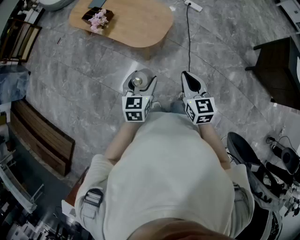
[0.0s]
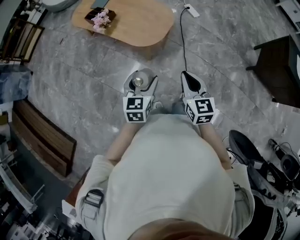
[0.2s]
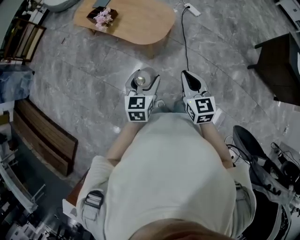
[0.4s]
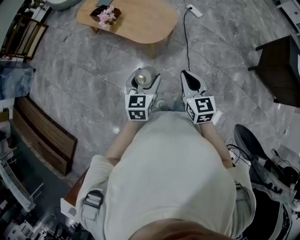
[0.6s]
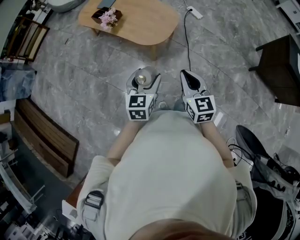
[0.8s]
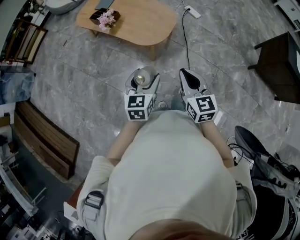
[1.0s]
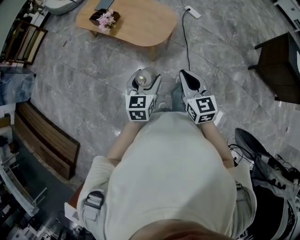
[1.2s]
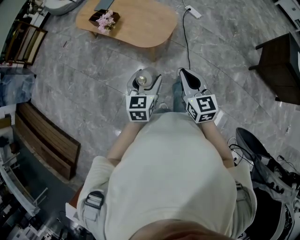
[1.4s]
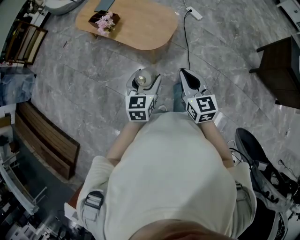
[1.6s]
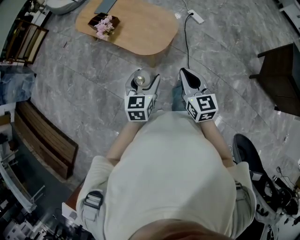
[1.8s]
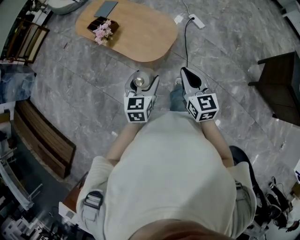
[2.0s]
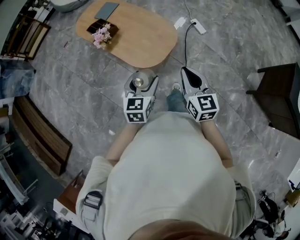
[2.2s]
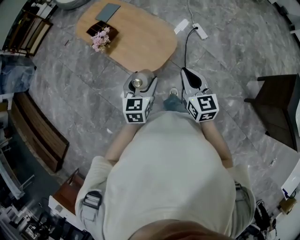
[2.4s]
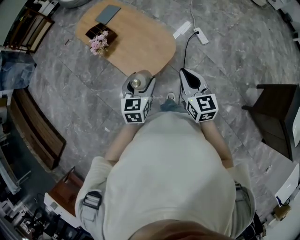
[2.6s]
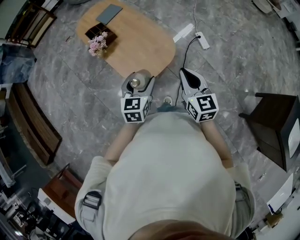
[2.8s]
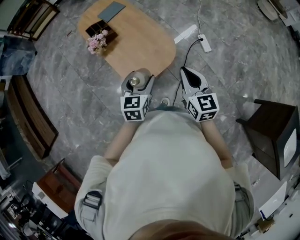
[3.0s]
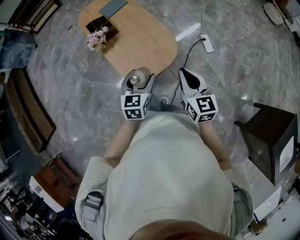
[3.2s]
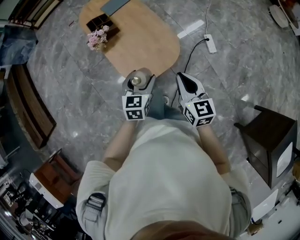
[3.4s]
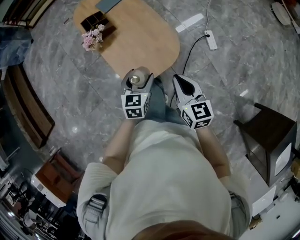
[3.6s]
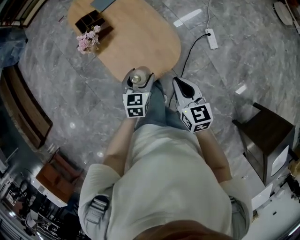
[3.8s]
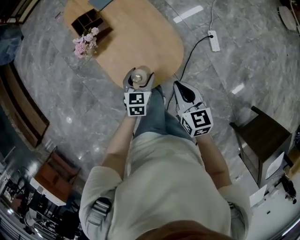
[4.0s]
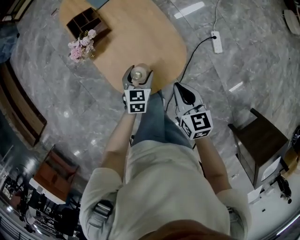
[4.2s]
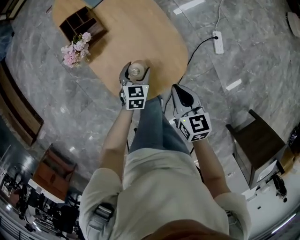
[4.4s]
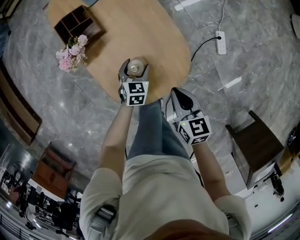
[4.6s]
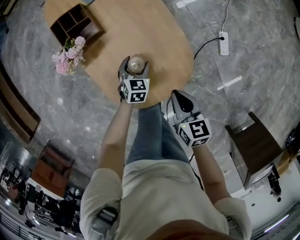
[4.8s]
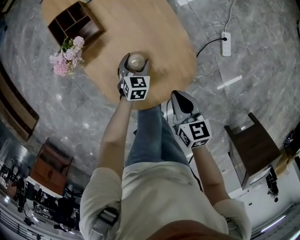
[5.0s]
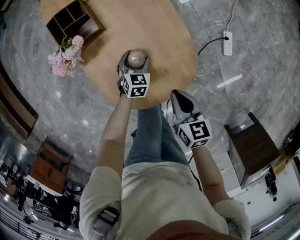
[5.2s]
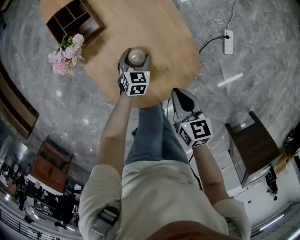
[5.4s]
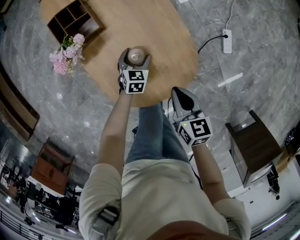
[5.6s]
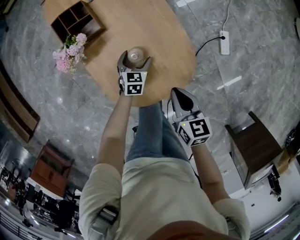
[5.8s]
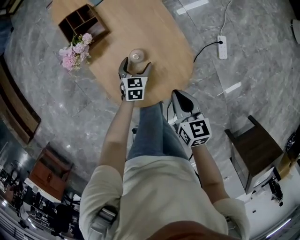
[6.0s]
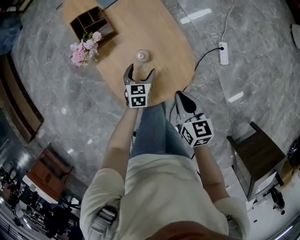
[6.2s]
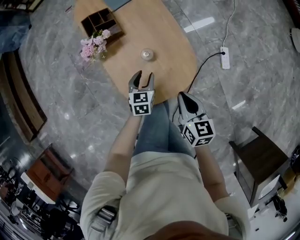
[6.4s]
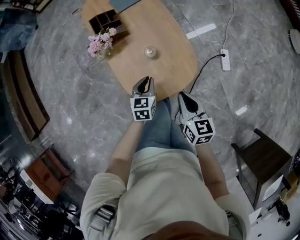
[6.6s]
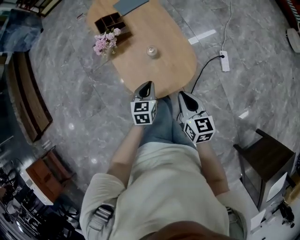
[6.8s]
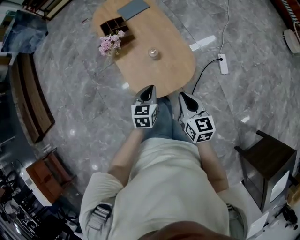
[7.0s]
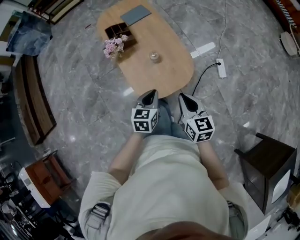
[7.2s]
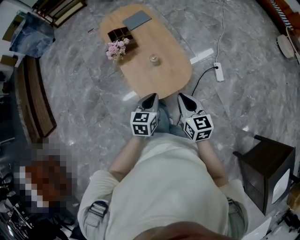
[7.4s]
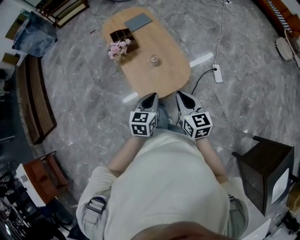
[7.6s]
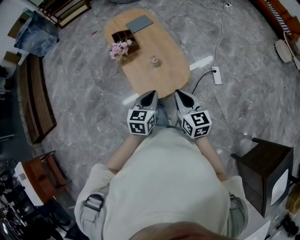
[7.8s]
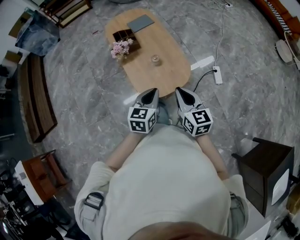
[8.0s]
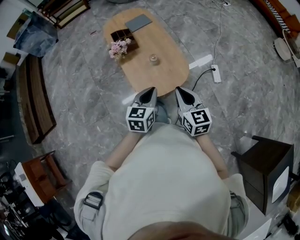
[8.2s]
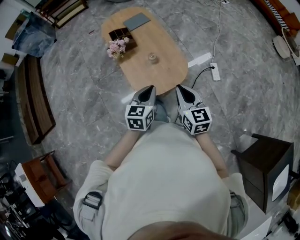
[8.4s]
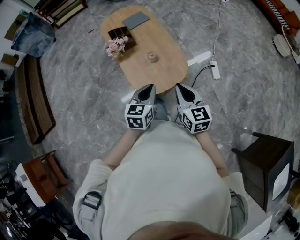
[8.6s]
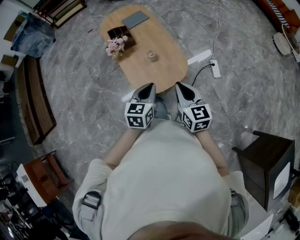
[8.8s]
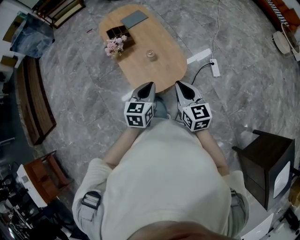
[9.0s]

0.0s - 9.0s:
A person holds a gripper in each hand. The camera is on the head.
1.6s - 3.0s: The grippers both shift forward and to the right by about 30 cm. The left gripper turns by some 20 degrees.
3.0s - 4.4s: The two grippers go about 30 cm downward and forward. The right gripper rotates approximately 20 degrees.
4.4s - 6.0s: The left gripper heads downward, covering about 5 cm.
6.0s - 7.6s: The right gripper moves upward and backward, roughly 25 cm, and turns by approximately 20 degrees. The left gripper moves upward and backward, some 40 cm, and closes.
7.6s - 9.0s: The grippers move only a little.

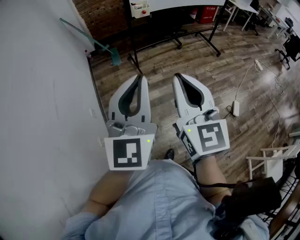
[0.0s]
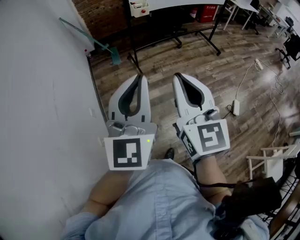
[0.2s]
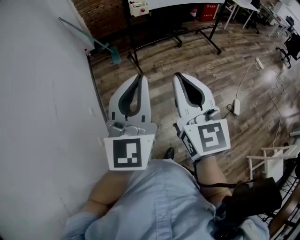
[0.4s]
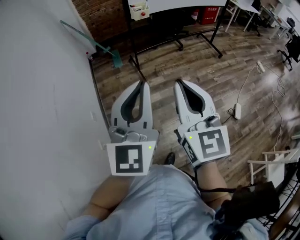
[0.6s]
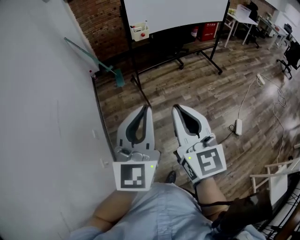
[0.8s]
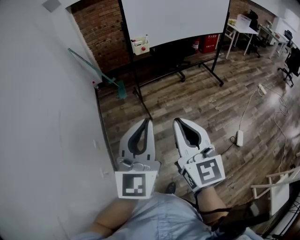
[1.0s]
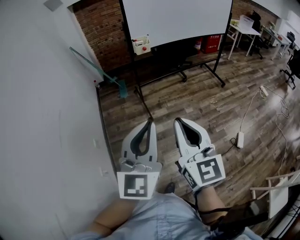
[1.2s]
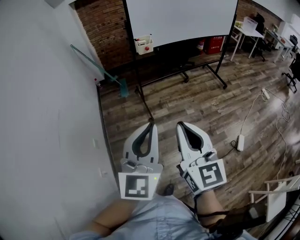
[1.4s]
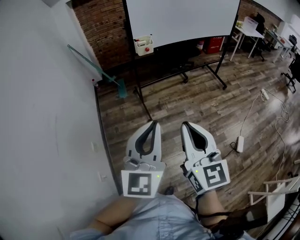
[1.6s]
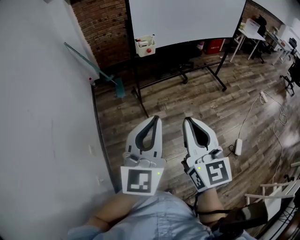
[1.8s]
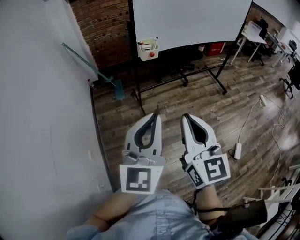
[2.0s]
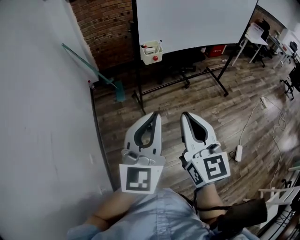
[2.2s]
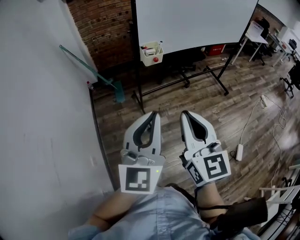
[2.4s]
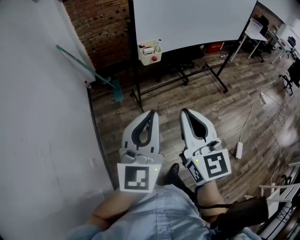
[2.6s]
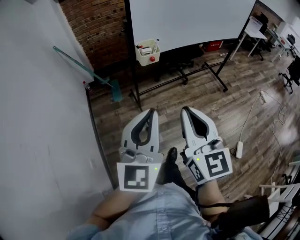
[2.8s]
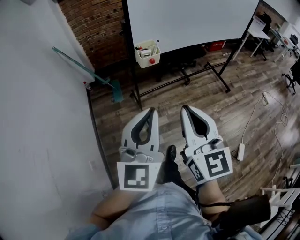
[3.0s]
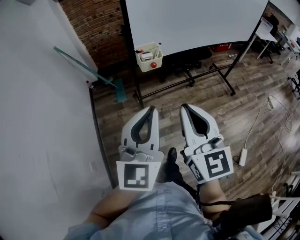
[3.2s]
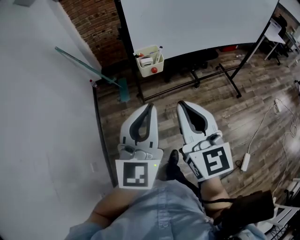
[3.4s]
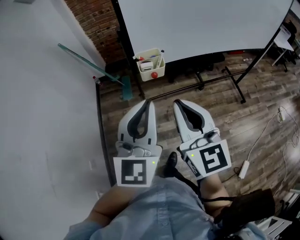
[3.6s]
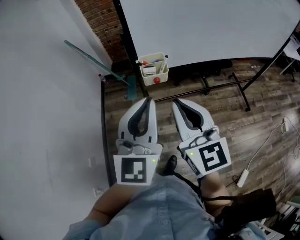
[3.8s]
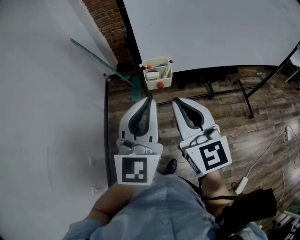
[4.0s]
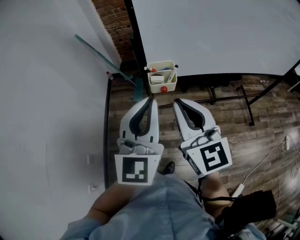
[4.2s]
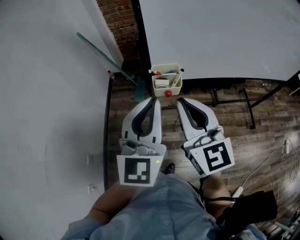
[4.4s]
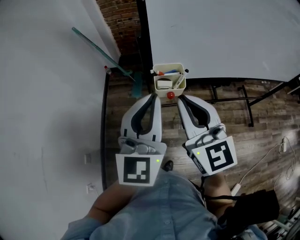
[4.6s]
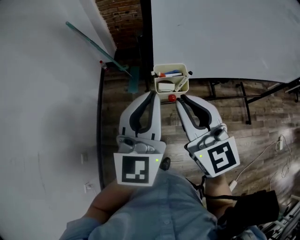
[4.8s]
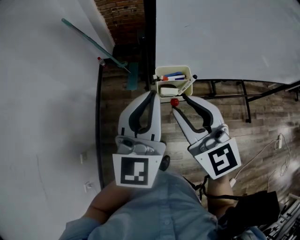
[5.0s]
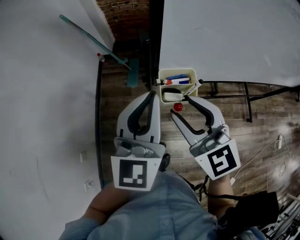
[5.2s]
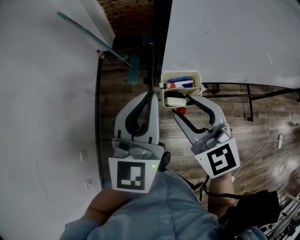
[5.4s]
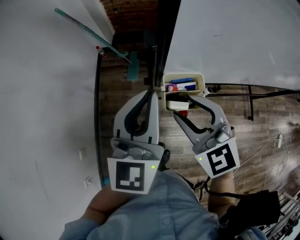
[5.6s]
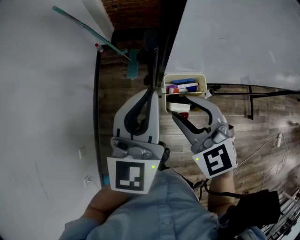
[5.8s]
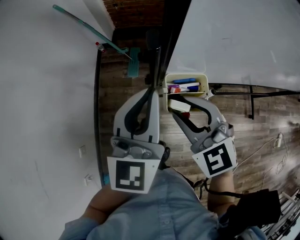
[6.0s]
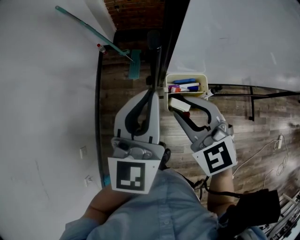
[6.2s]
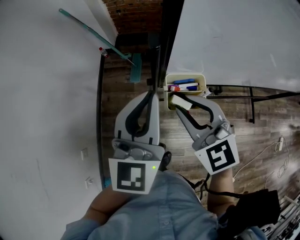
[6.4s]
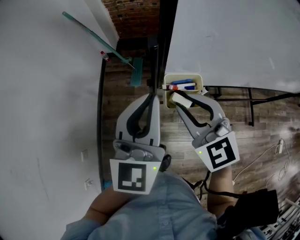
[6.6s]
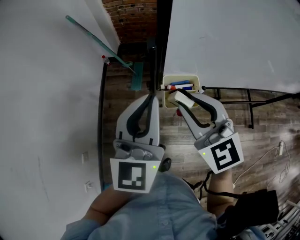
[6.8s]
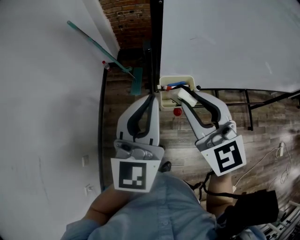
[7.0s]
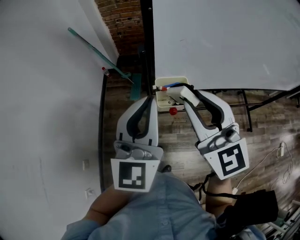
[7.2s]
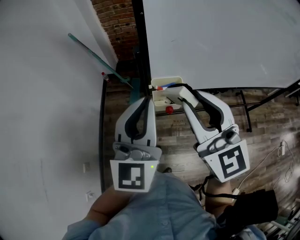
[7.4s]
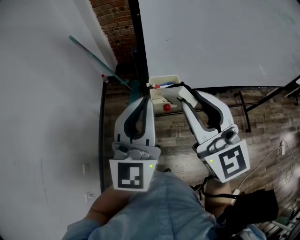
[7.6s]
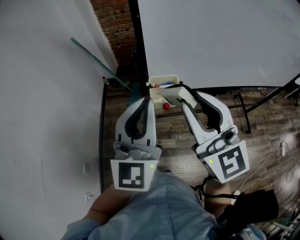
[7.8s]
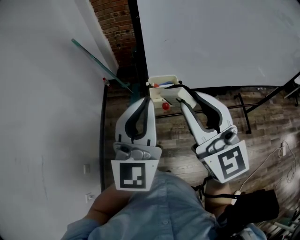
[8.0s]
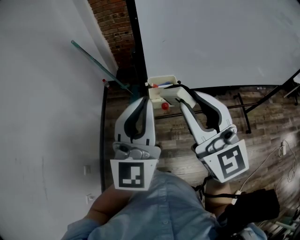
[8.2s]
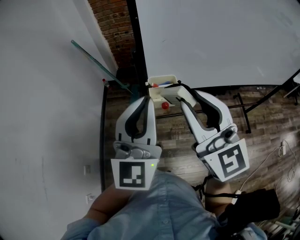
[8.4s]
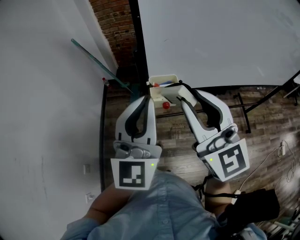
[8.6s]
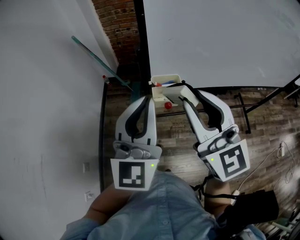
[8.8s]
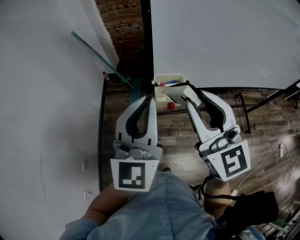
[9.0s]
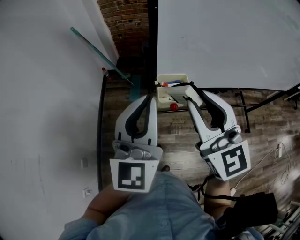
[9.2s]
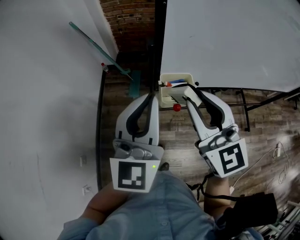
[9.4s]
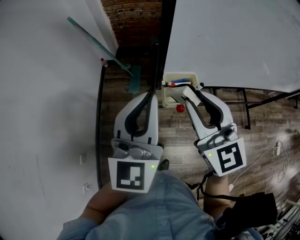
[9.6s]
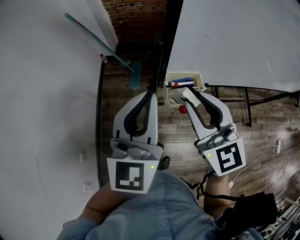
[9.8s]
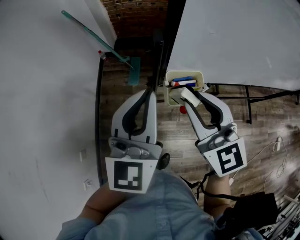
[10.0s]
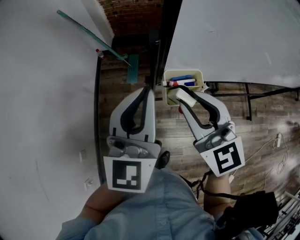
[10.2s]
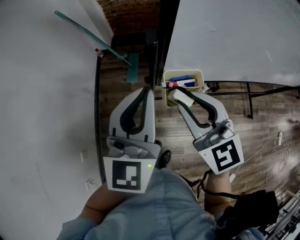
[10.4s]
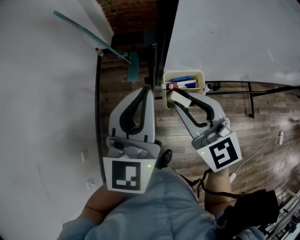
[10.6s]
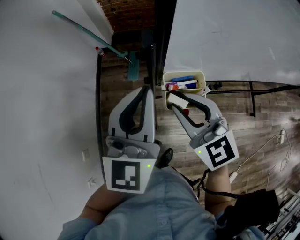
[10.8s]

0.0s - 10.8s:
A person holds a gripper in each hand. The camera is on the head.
0.0s - 1.6s: Both grippers move forward and to the right, about 10 cm.
1.6s - 3.0s: Both grippers travel together forward, about 25 cm.
3.0s - 4.6s: The grippers both shift forward by approximately 25 cm. The right gripper swivels about 30 degrees; the left gripper swivels some 20 degrees.
4.6s - 6.2s: The right gripper shifts about 15 cm downward and forward, swivels approximately 30 degrees, and opens up. The left gripper is displaced forward and downward by about 15 cm.
6.2s - 7.8s: The left gripper shifts roughly 15 cm backward and upward. Meanwhile the right gripper travels upward and backward by roughly 20 cm, and tips its fingers upward by approximately 30 degrees.
7.8s - 9.2s: The grippers stay close to where they were, moving slightly.
9.2s - 10.8s: The left gripper travels forward and downward by about 10 cm. Meanwhile the right gripper goes approximately 15 cm downward and forward, and turns by approximately 20 degrees.

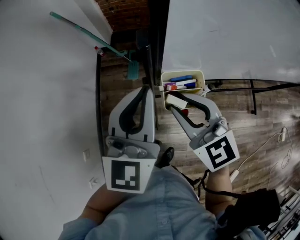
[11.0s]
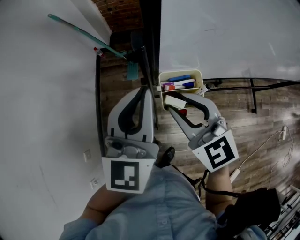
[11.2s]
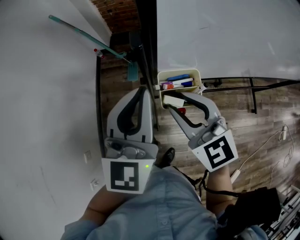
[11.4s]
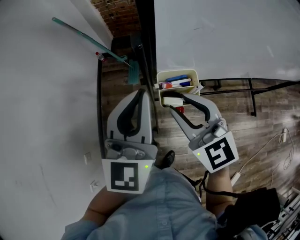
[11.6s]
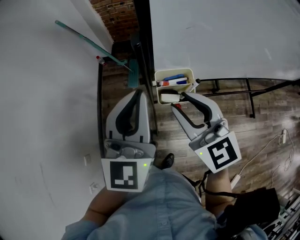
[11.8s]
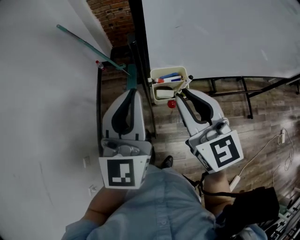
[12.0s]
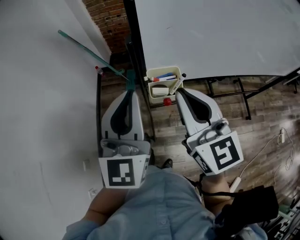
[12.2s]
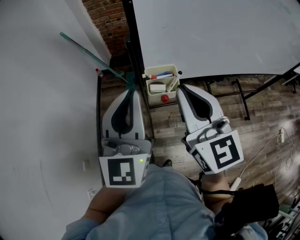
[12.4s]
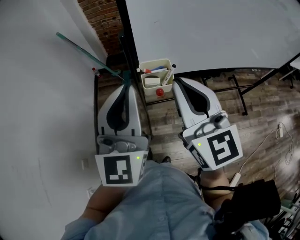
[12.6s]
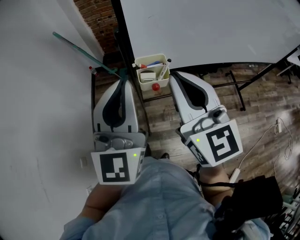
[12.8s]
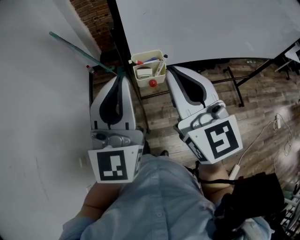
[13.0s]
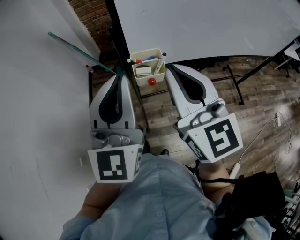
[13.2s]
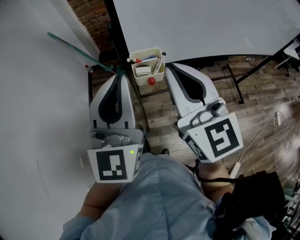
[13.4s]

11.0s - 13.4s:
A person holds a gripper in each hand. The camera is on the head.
11.0s - 12.2s: The left gripper moves backward and upward, some 10 cm. The right gripper heads upward and backward, covering some 15 cm, rotates about 20 degrees, and closes its fingers.
12.2s - 13.4s: The grippers both shift backward by about 5 cm.

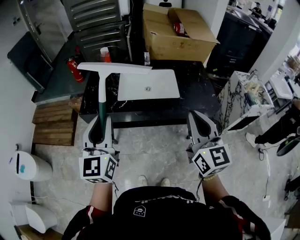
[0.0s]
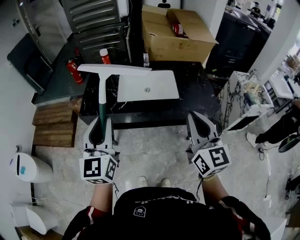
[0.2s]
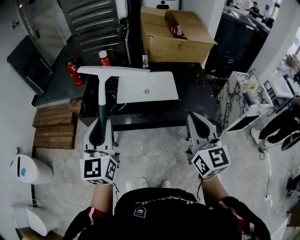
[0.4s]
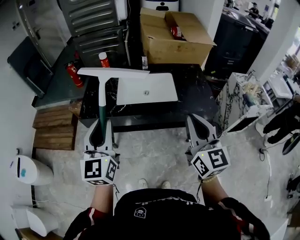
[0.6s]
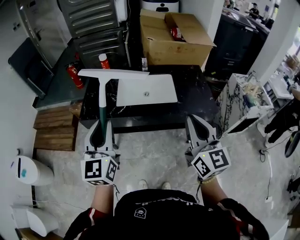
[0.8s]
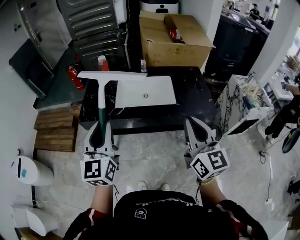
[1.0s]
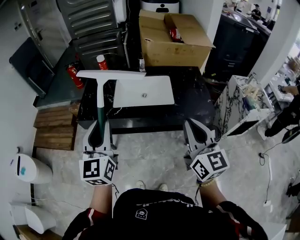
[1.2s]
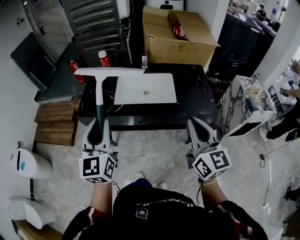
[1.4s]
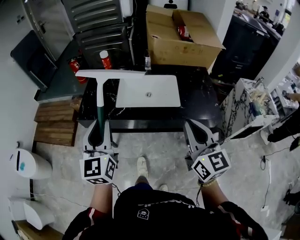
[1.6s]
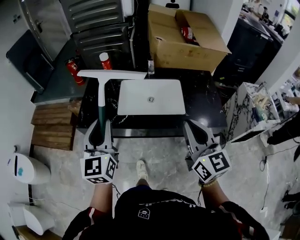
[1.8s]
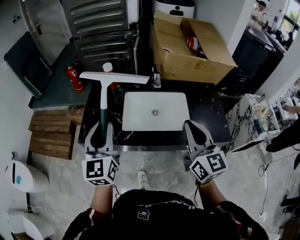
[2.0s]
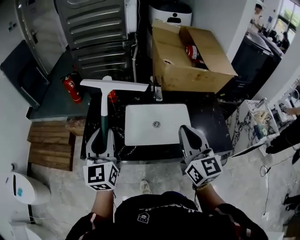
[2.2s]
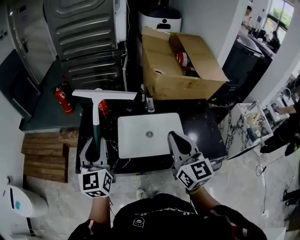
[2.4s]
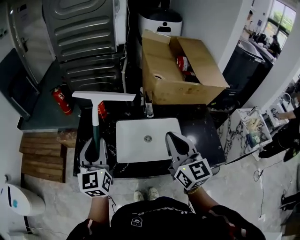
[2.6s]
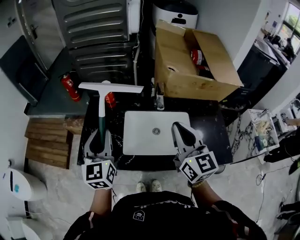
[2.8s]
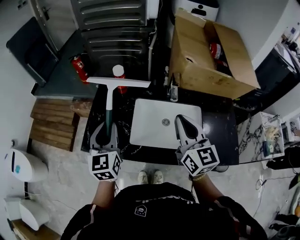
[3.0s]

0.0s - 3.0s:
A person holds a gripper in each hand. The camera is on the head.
0.0s - 1.6s: The left gripper changes place by some 5 cm. Meanwhile the right gripper changes place by approximately 5 cm.
1.6s - 3.0s: The grippers both shift forward by about 35 cm.
